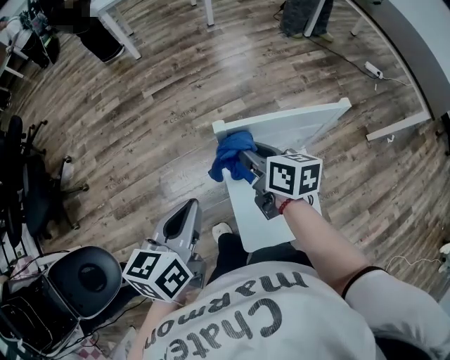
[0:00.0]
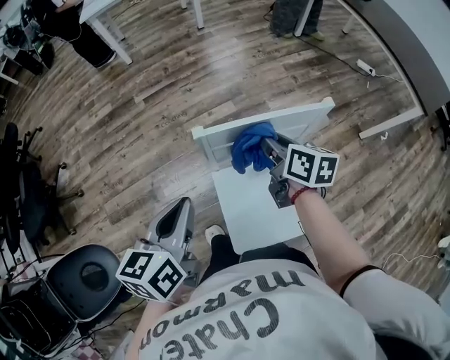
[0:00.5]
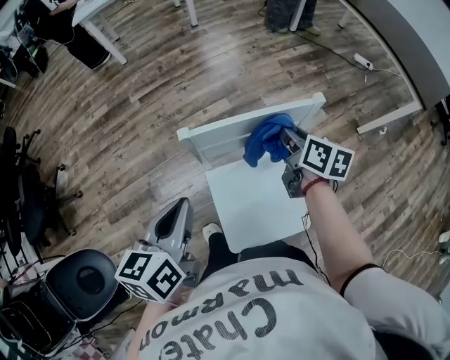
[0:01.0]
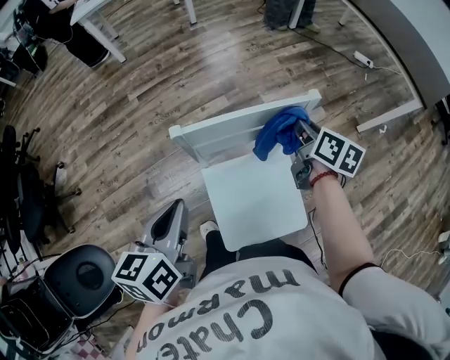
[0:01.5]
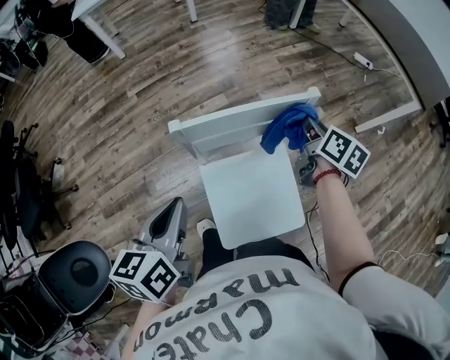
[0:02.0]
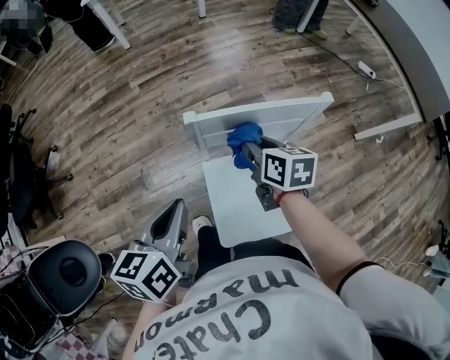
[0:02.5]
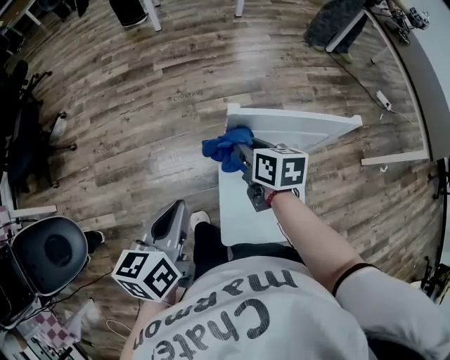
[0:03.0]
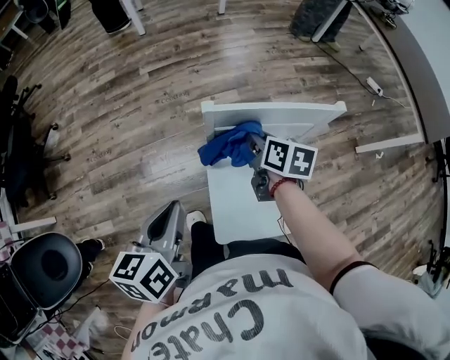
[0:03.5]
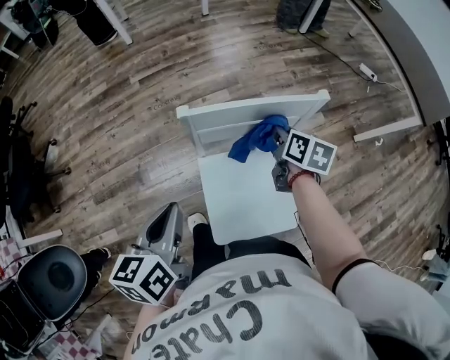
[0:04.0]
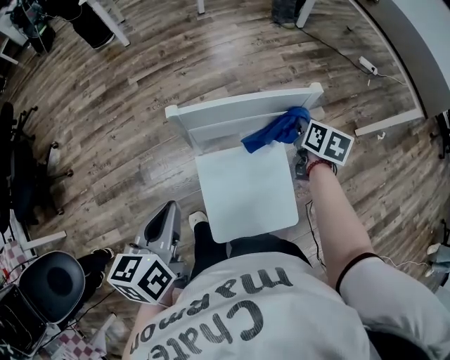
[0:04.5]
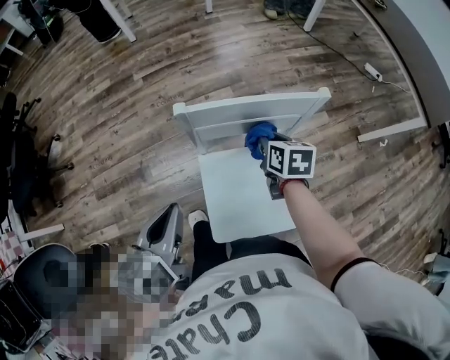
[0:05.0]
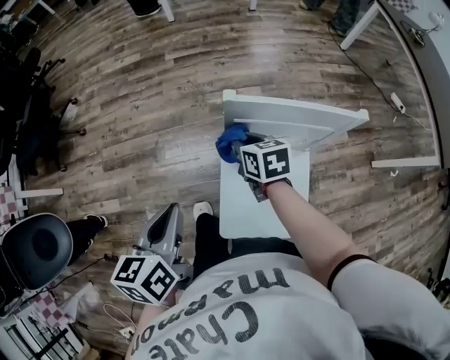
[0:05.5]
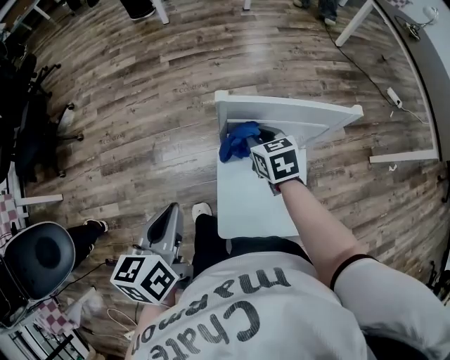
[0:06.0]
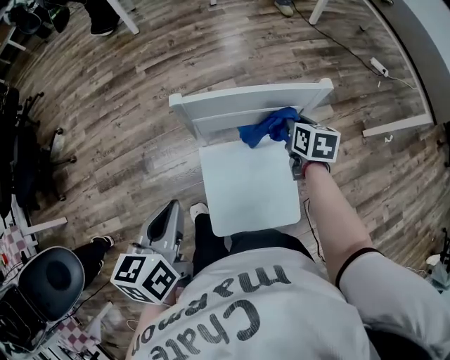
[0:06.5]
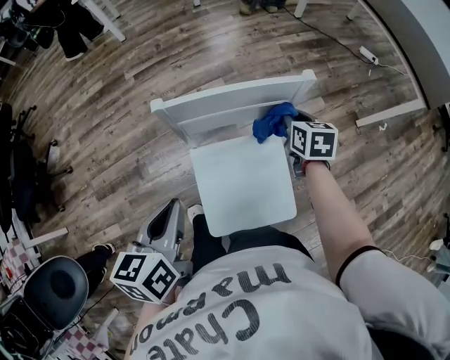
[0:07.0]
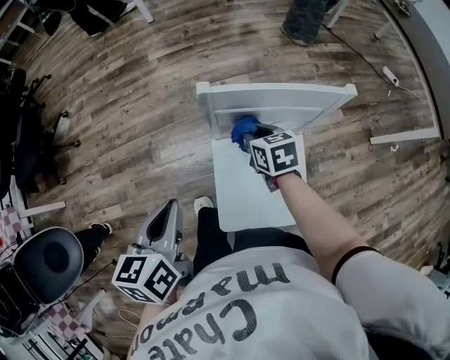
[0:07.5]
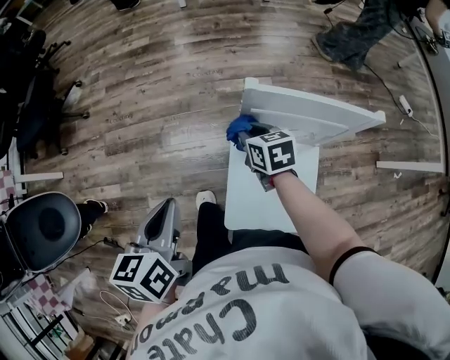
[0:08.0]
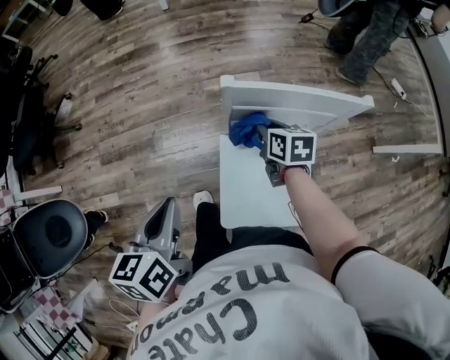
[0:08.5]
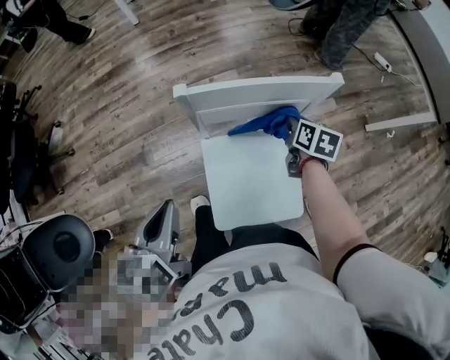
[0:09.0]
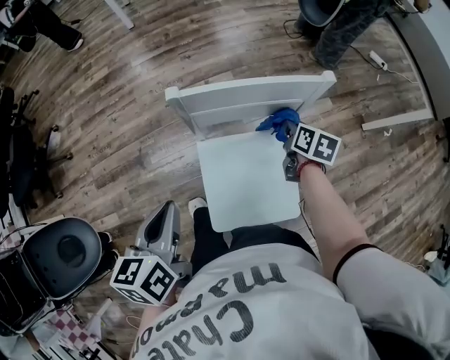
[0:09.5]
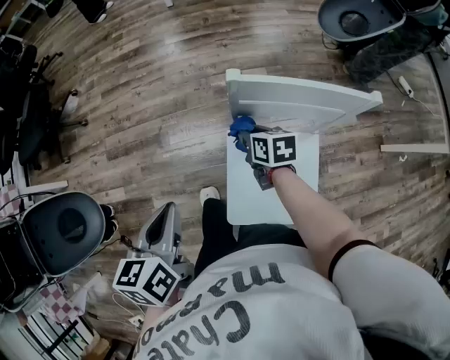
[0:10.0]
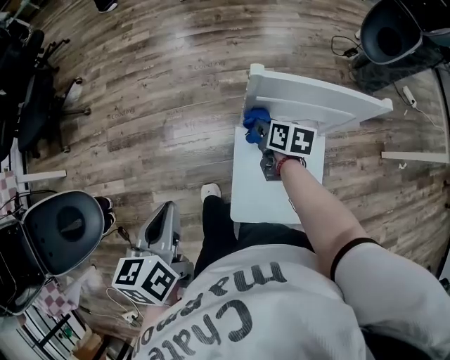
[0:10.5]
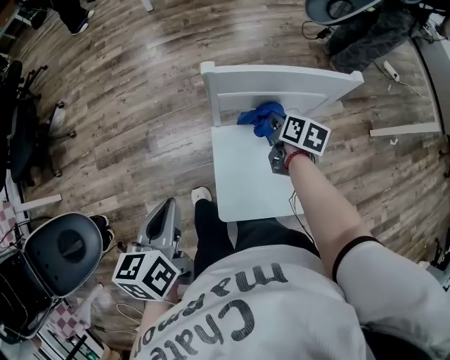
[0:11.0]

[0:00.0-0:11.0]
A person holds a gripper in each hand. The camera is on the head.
0.0 to 2.0 s: The right gripper goes about 30 cm to the right, and rotates approximately 30 degrees. The left gripper moves to the right, roughly 5 cm.
2.0 to 3.5 s: The right gripper shifts roughly 20 cm to the left, and rotates roughly 30 degrees. Meanwhile the left gripper goes approximately 5 cm to the left.
3.5 to 5.5 s: The right gripper changes its angle by some 30 degrees.
7.5 to 9.0 s: The right gripper shifts by about 20 cm, and rotates approximately 30 degrees.
9.0 to 11.0 s: The right gripper shifts some 10 cm to the left. The left gripper reaches roughly 10 cm to the left, then returns.

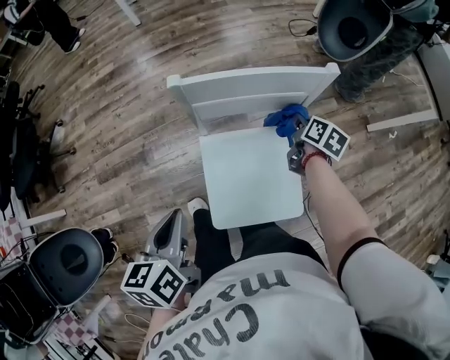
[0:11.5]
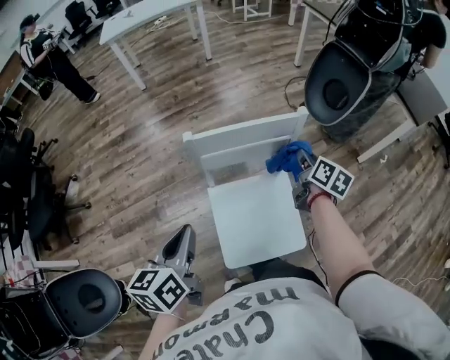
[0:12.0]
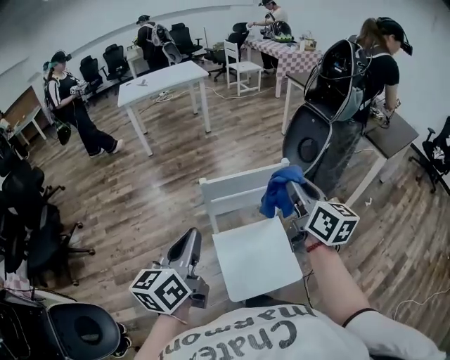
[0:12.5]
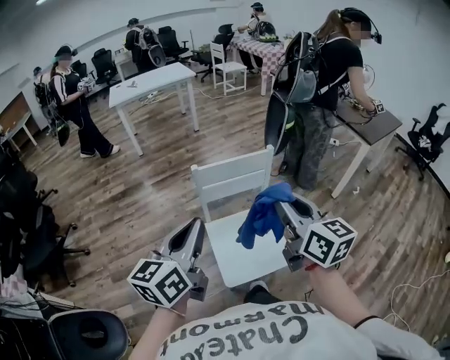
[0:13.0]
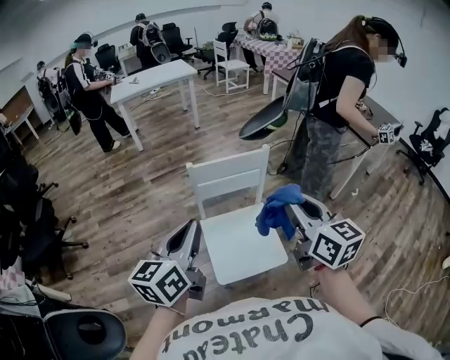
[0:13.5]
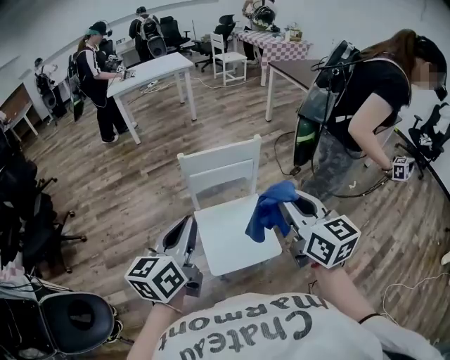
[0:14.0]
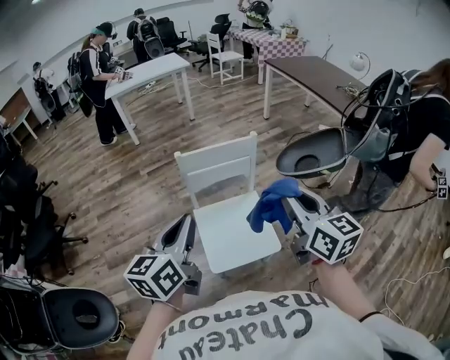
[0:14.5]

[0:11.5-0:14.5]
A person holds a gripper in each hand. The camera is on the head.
11.5 to 13.0 s: The left gripper shifts some 25 cm upward, and angles its fingers upward, by about 30 degrees. Meanwhile the right gripper travels upward and backward by about 50 cm, and angles its fingers upward, by about 40 degrees.
13.0 to 14.5 s: The right gripper shifts about 10 cm to the right; the left gripper shifts by about 5 cm.

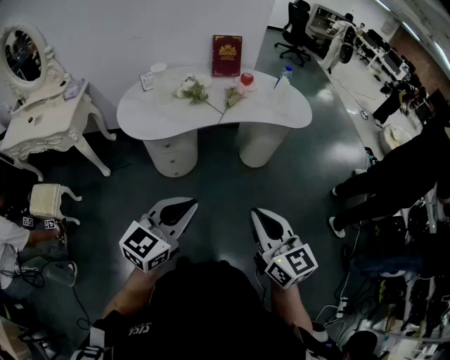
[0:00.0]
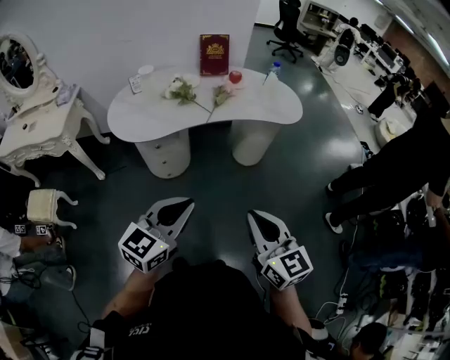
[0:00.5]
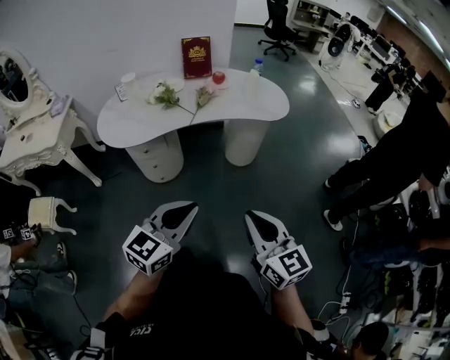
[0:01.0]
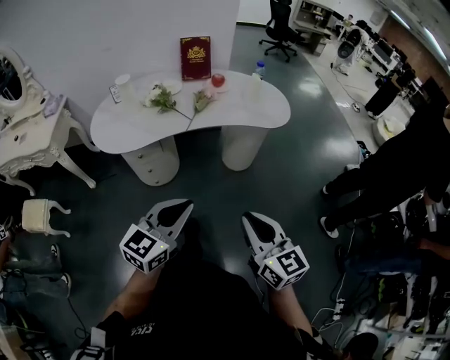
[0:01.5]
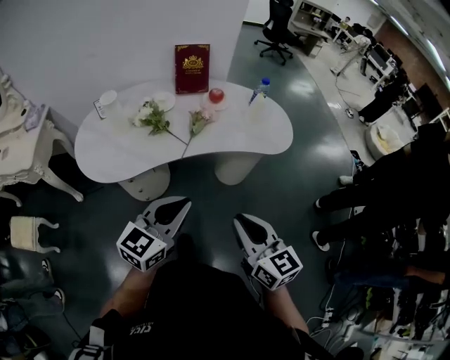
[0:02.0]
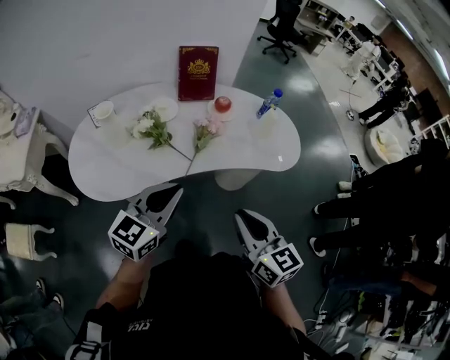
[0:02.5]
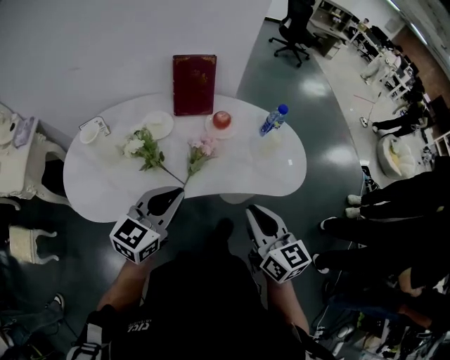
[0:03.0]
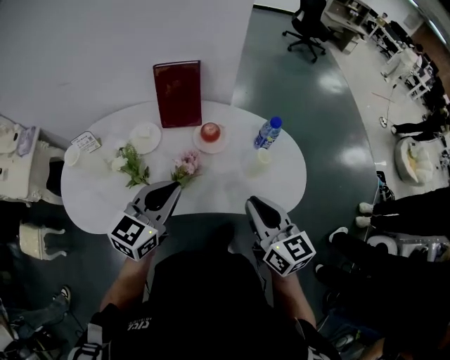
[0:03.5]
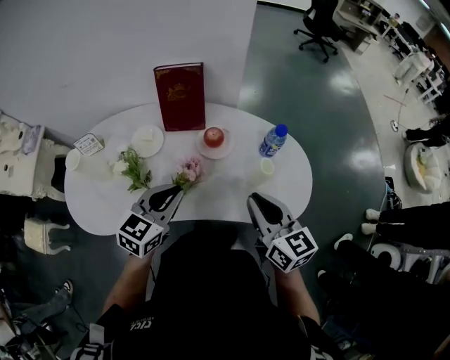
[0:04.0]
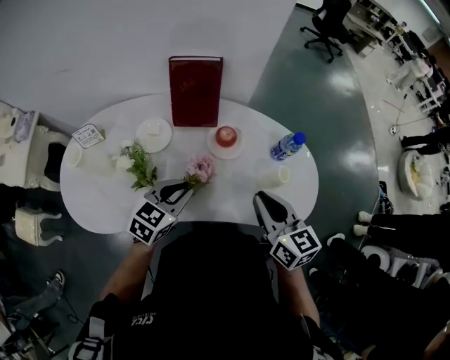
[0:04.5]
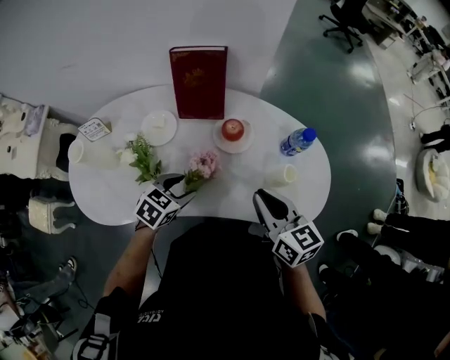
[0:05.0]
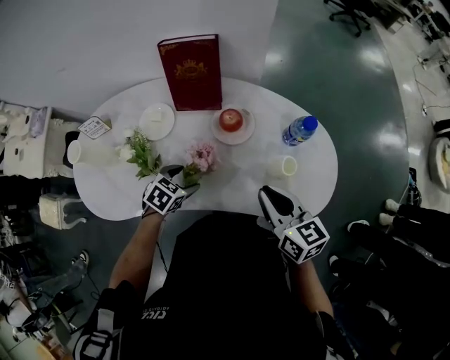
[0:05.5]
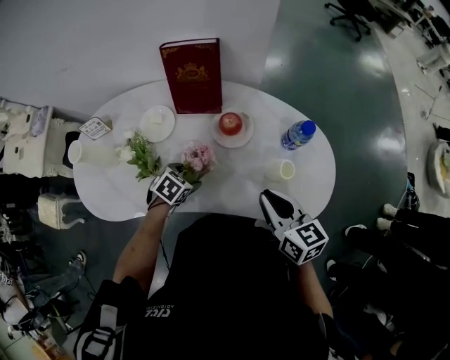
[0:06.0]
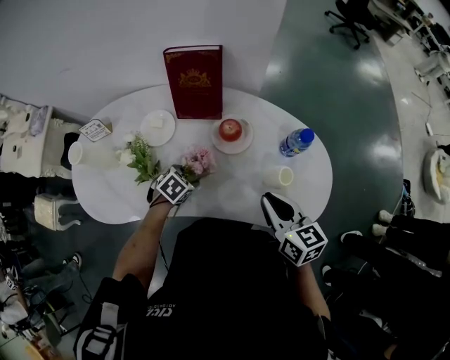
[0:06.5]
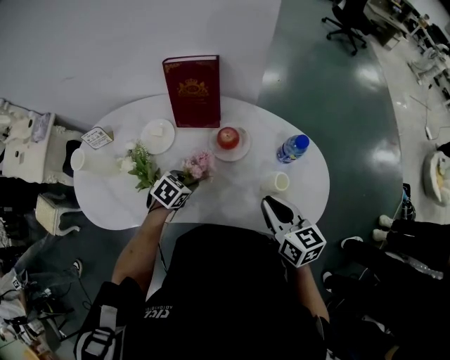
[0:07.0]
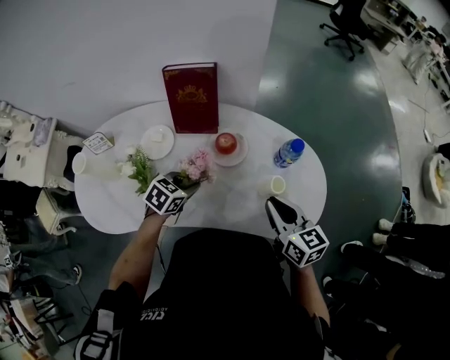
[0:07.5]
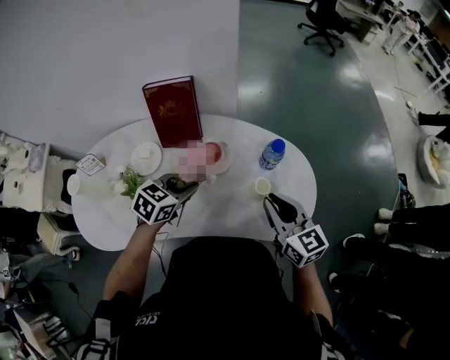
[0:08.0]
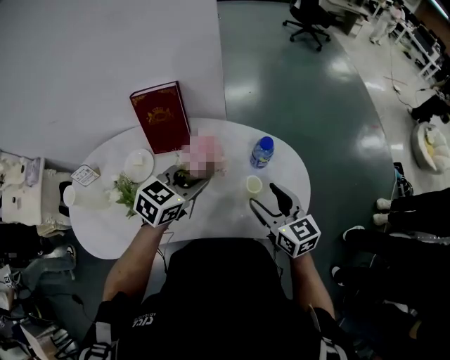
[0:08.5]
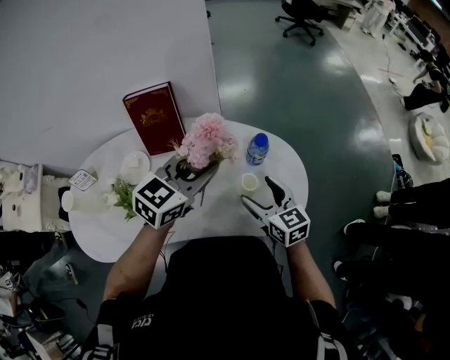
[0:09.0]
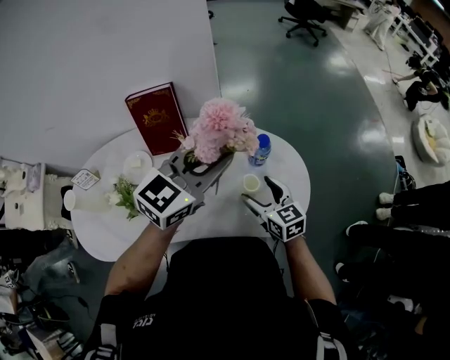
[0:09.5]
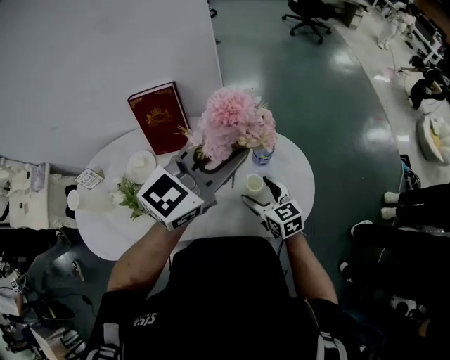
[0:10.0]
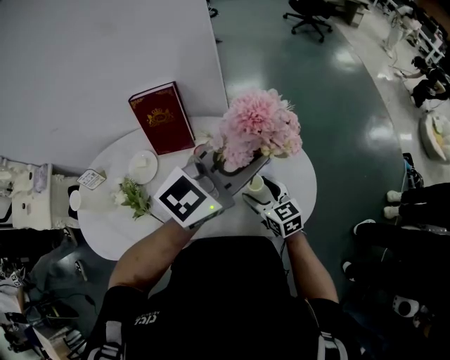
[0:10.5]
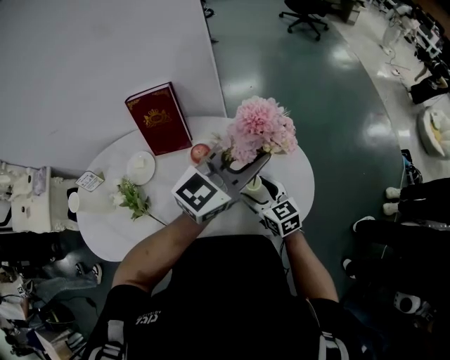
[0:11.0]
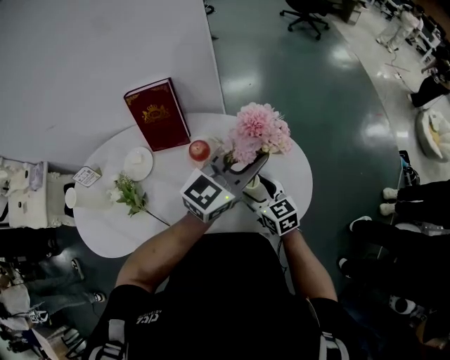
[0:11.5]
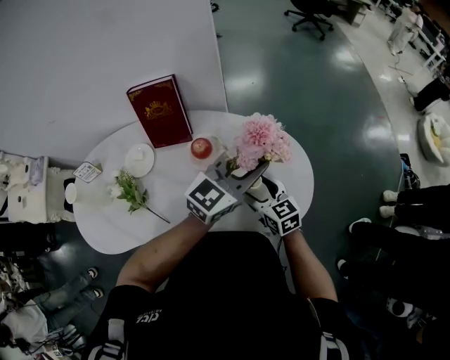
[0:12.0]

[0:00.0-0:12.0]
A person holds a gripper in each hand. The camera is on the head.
0.0 to 2.0 s: Both grippers travel together forward, some 25 cm.
2.0 to 4.0 s: The pair of grippers is taken forward, some 40 cm. The left gripper rotates some 20 degrees.
4.0 to 6.0 s: The left gripper heads downward, covering about 25 cm, tips its fingers downward by some 40 degrees, and opens its fingers. The right gripper is displaced downward by roughly 10 cm.
6.0 to 8.0 s: The left gripper shifts approximately 20 cm upward, to the right and forward, swivels approximately 30 degrees, and closes. The right gripper shifts some 5 cm to the right.
8.0 to 10.0 s: The right gripper moves downward, approximately 10 cm, and opens up; the left gripper travels upward and to the right by some 30 cm, and tips its fingers upward by roughly 40 degrees.
10.0 to 12.0 s: The left gripper goes some 10 cm downward.

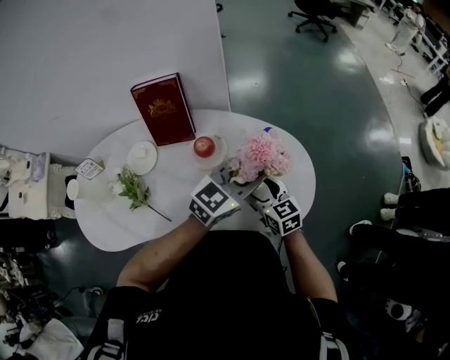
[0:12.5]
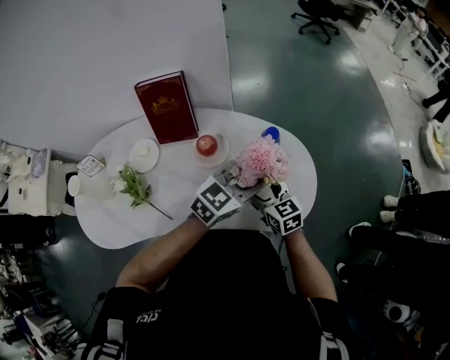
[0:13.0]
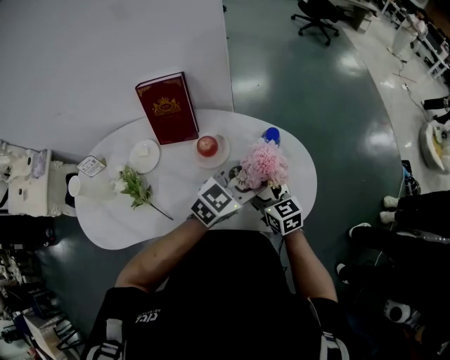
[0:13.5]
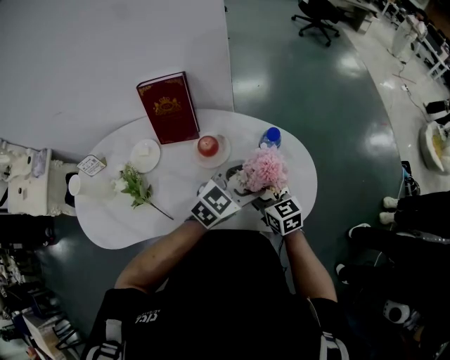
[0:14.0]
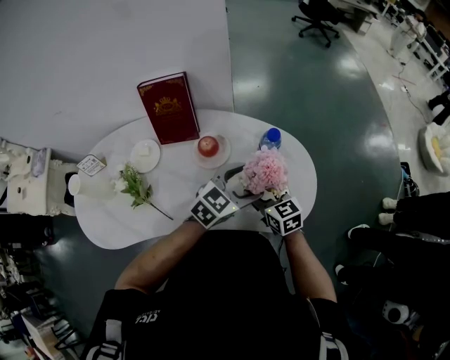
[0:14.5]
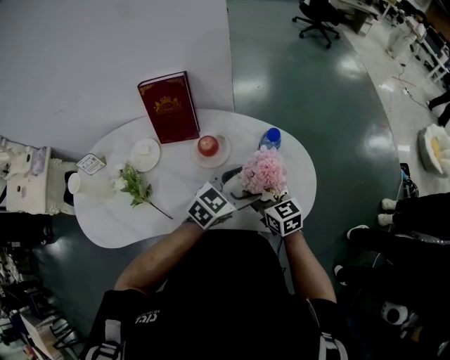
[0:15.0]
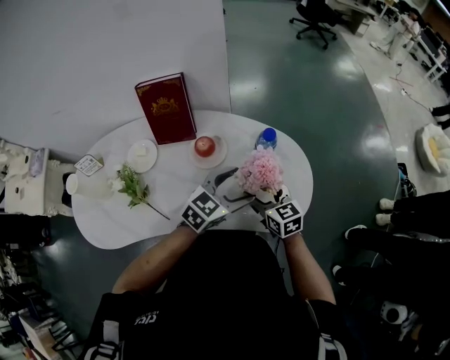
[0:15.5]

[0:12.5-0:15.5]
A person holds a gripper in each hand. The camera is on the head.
12.5 to 14.0 s: The left gripper travels downward by some 5 cm, and opens its fingers.
14.0 to 15.5 s: The grippers make only small movements.
